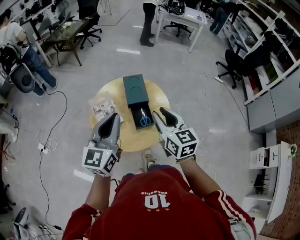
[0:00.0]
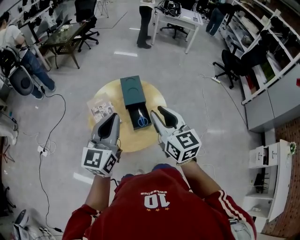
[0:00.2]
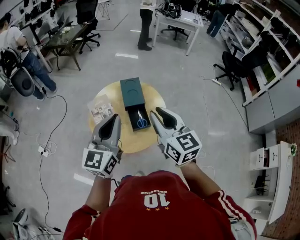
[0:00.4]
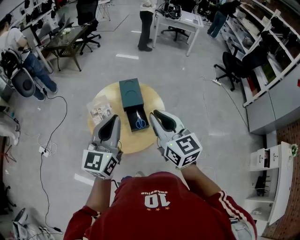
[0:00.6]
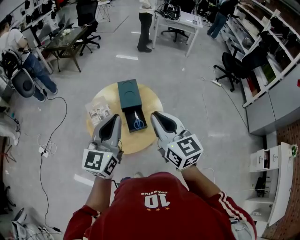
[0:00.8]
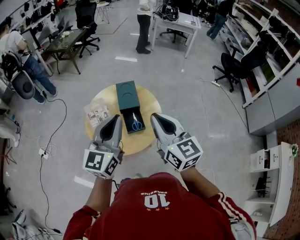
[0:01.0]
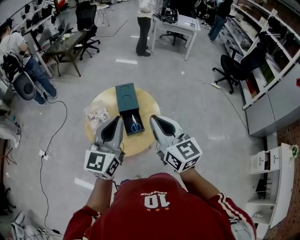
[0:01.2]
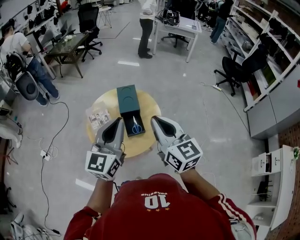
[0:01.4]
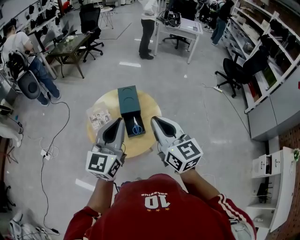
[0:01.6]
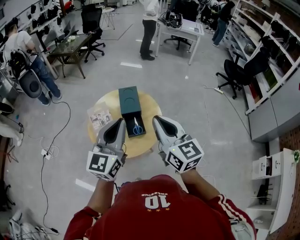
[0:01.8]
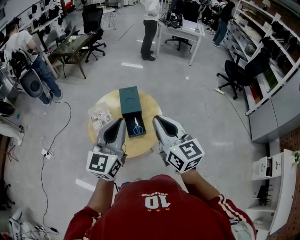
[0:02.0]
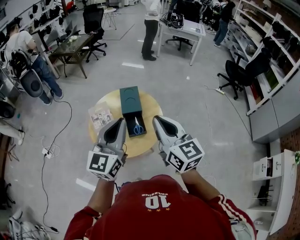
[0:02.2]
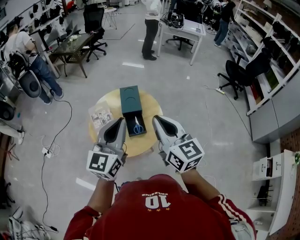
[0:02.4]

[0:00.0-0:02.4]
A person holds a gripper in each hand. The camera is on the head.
0:00.0 to 0:01.2: The right gripper shifts some 10 cm upward and backward, and closes up; the left gripper moves to the right, roughly 10 cm.
0:01.2 to 0:02.4: The grippers stay close to where they were, moving slightly.

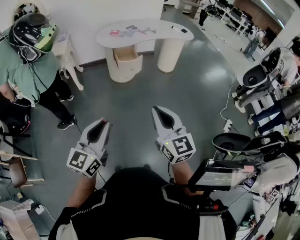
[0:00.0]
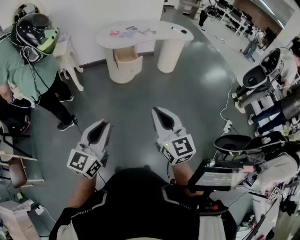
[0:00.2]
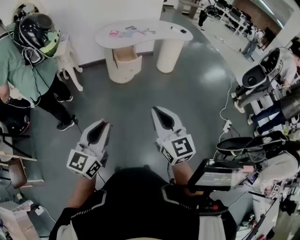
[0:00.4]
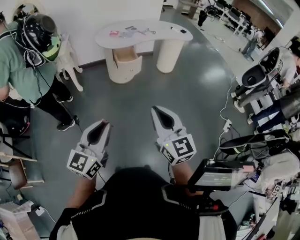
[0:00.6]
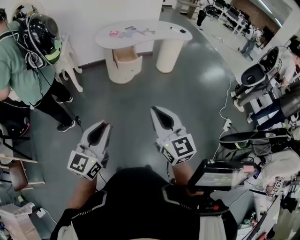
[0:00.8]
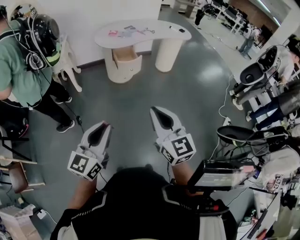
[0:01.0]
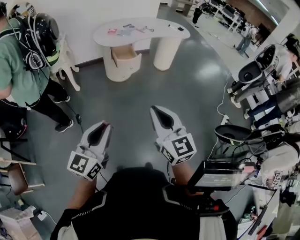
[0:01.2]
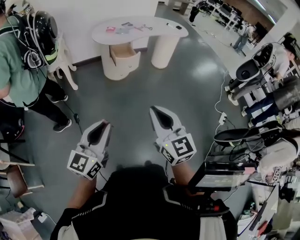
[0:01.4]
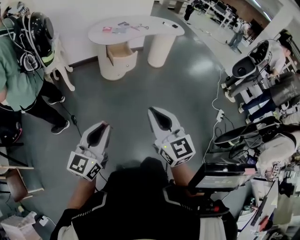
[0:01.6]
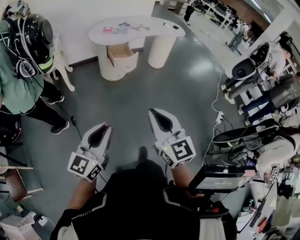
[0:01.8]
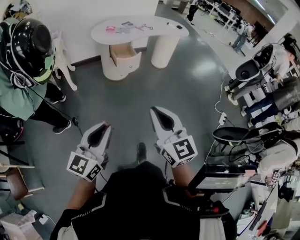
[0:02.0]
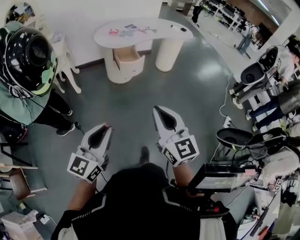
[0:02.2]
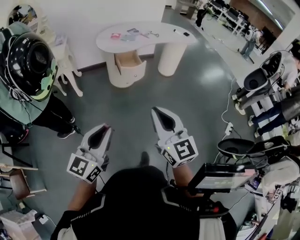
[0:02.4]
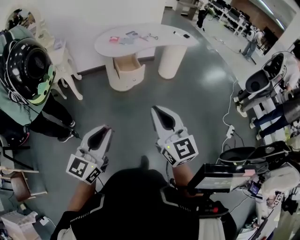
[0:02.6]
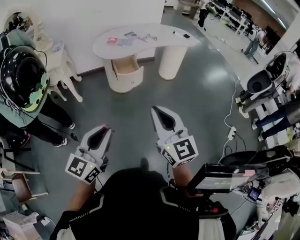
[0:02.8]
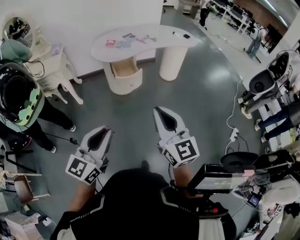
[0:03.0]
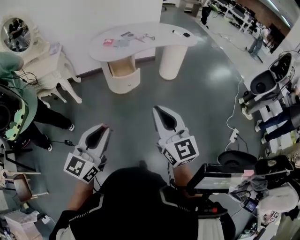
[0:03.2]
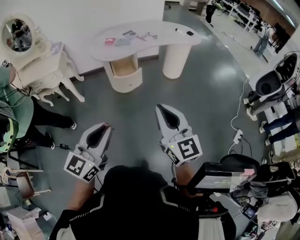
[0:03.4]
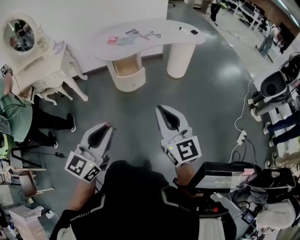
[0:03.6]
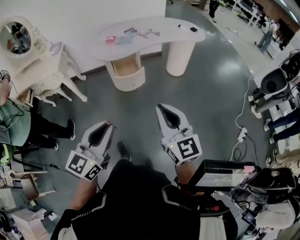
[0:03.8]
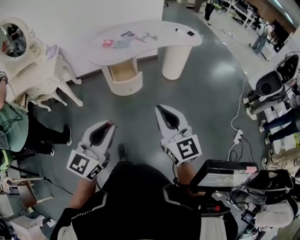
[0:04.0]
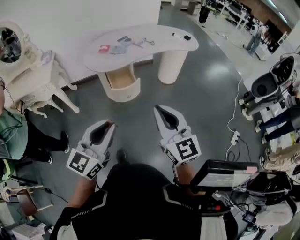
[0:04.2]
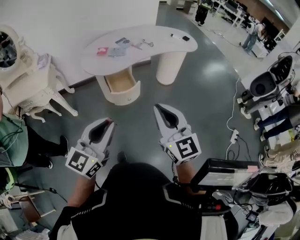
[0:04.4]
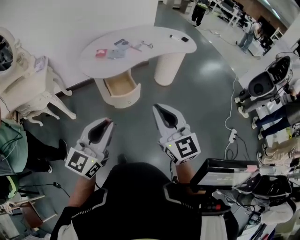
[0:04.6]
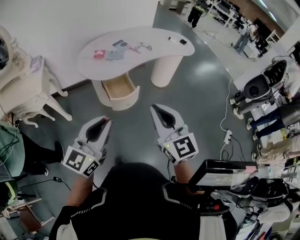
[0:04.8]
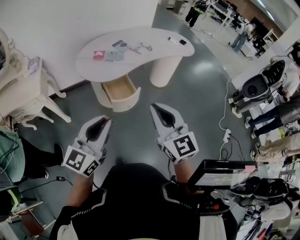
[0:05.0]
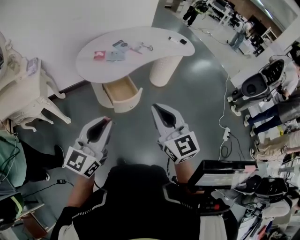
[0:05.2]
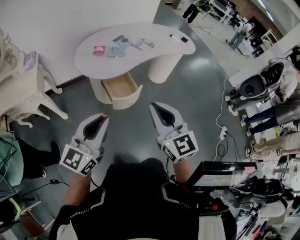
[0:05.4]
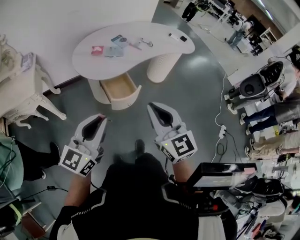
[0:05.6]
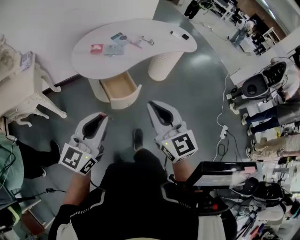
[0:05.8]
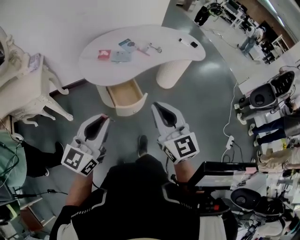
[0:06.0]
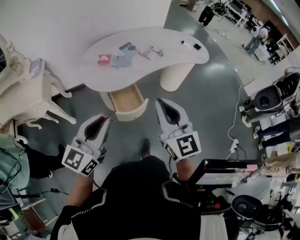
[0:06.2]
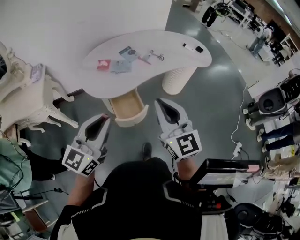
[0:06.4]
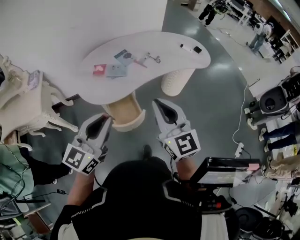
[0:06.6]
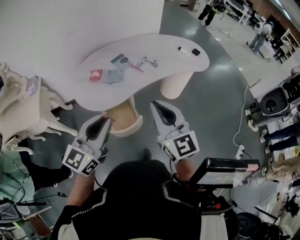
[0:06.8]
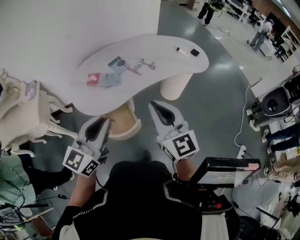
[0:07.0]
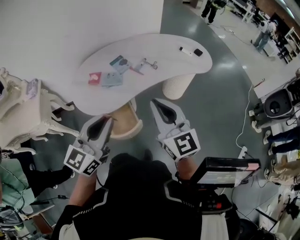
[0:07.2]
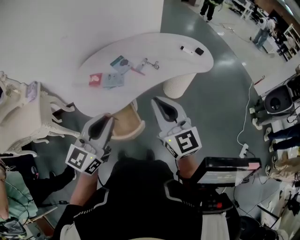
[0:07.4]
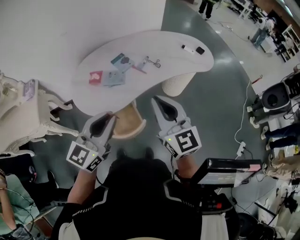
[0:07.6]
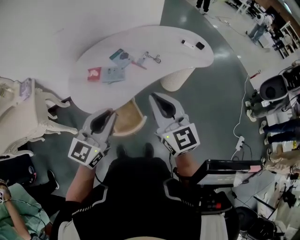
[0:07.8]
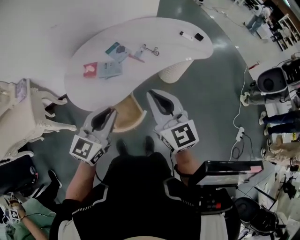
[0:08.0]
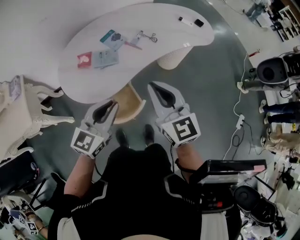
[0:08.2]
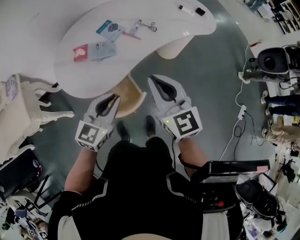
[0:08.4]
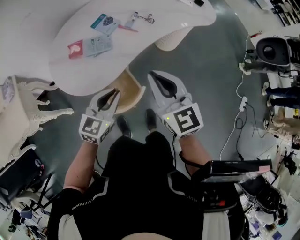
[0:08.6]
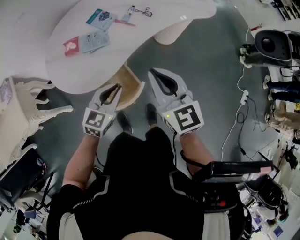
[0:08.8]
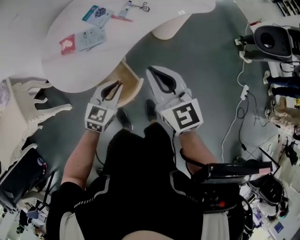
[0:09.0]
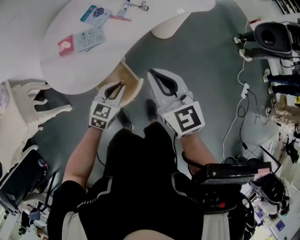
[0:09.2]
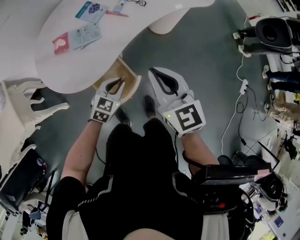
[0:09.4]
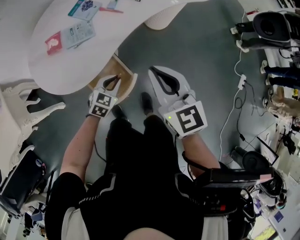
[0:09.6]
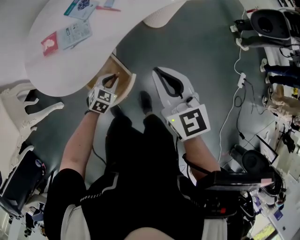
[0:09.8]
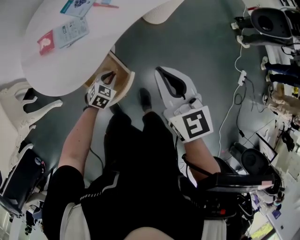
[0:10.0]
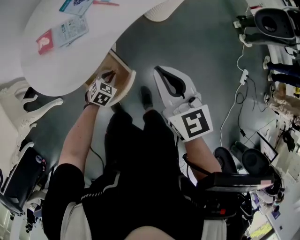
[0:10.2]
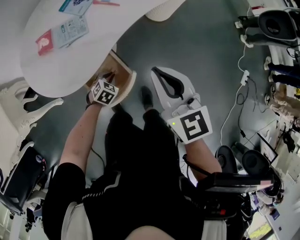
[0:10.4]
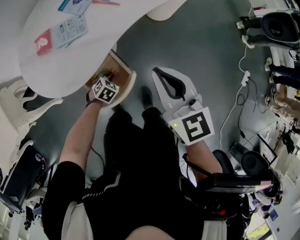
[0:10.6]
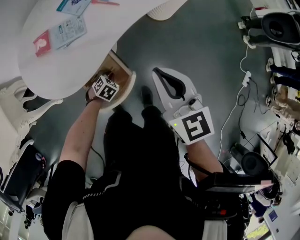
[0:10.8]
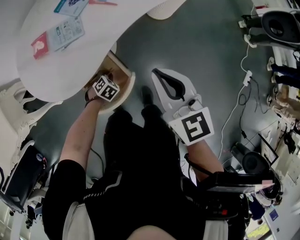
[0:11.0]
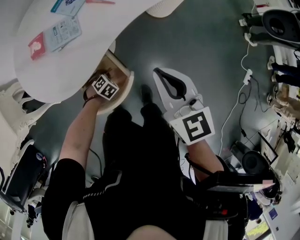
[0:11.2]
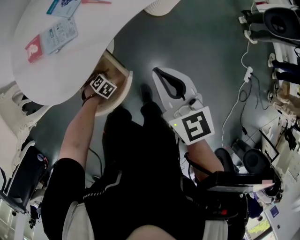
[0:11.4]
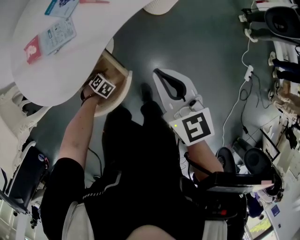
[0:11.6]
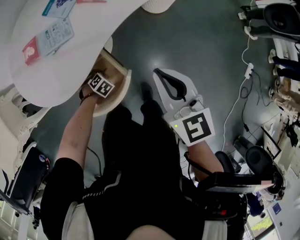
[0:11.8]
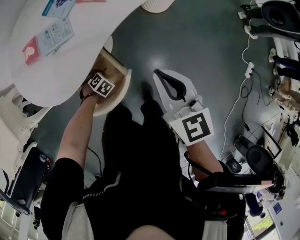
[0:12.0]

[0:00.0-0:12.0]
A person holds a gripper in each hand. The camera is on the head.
0:00.0 to 0:01.6: The grippers both shift to the left by some 10 cm.
0:01.6 to 0:03.0: Both grippers move forward and to the right, approximately 20 cm.
0:03.0 to 0:04.4: The grippers both shift forward by roughly 20 cm.
0:04.4 to 0:06.0: The two grippers go roughly 20 cm forward and to the left.
0:06.0 to 0:07.6: Both grippers travel together forward, some 25 cm.
0:07.6 to 0:09.0: The right gripper heads downward, covering about 15 cm. Meanwhile the left gripper is displaced downward by some 25 cm, and swivels roughly 30 degrees.
0:09.0 to 0:10.4: The right gripper goes some 5 cm downward. The left gripper goes some 25 cm downward, and points its fingers roughly 40 degrees further downward.
0:10.4 to 0:12.0: The right gripper goes roughly 5 cm downward, while the left gripper is displaced downward by roughly 10 cm, and swivels some 20 degrees.

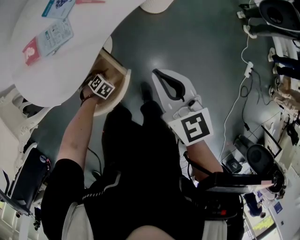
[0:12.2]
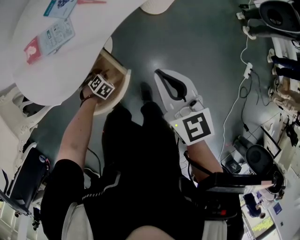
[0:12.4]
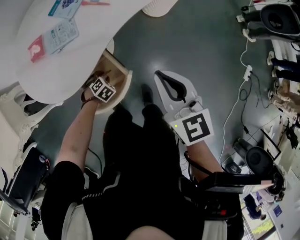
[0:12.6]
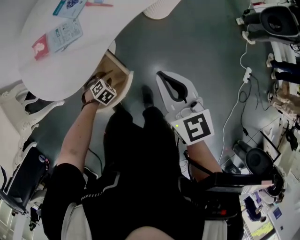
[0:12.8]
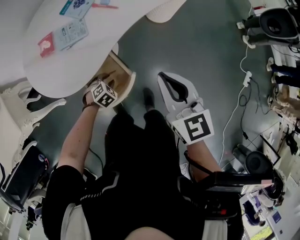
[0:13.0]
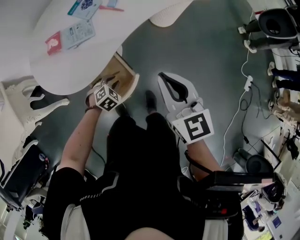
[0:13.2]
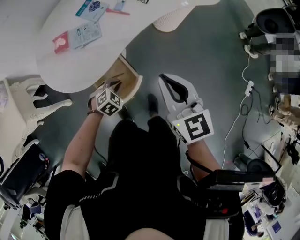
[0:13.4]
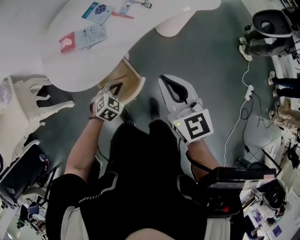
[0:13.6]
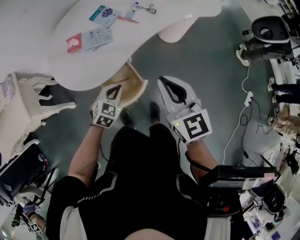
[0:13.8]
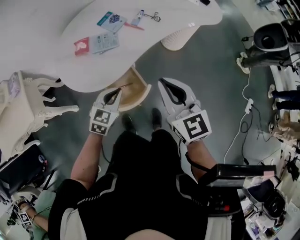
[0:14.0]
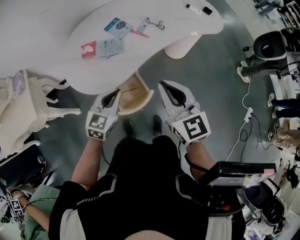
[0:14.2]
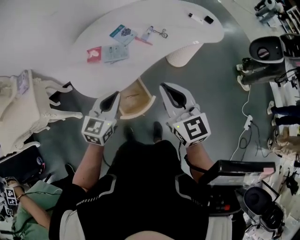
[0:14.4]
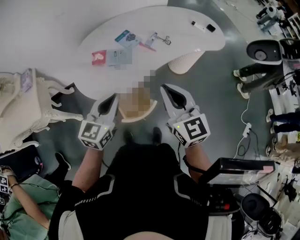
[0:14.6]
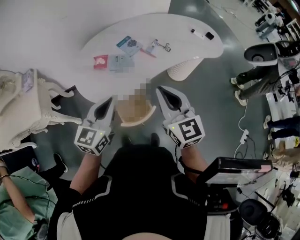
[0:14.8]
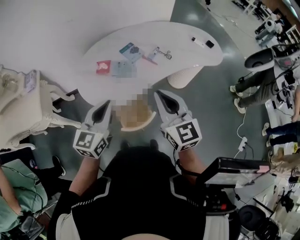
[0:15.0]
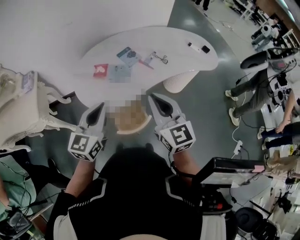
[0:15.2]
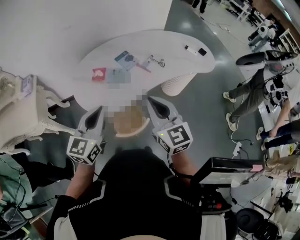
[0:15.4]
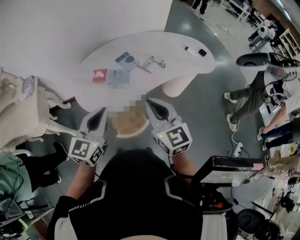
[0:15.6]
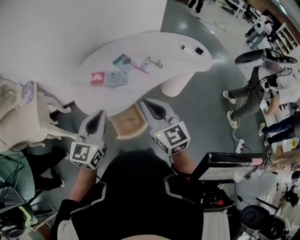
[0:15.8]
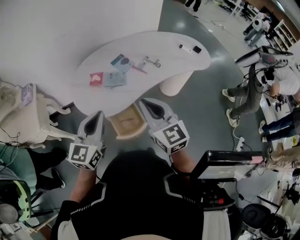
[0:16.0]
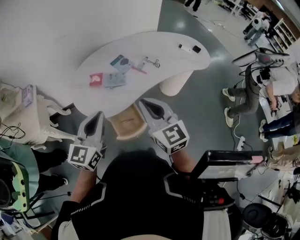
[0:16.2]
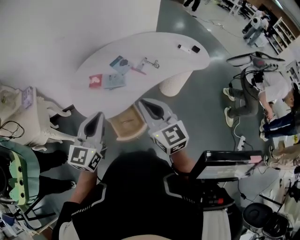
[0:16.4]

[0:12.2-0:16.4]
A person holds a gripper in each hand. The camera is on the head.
0:12.2 to 0:13.6: The left gripper is displaced upward by about 25 cm, and rotates some 30 degrees, while the right gripper is displaced upward by some 10 cm.
0:13.6 to 0:15.0: The right gripper travels upward and to the left by approximately 15 cm, while the left gripper moves upward, about 30 cm, and tilts its fingers some 40 degrees upward.
0:15.0 to 0:16.4: The grippers make only small movements.

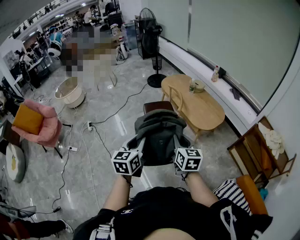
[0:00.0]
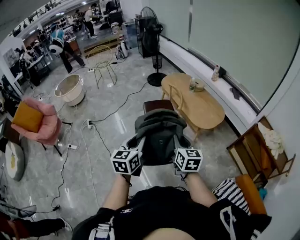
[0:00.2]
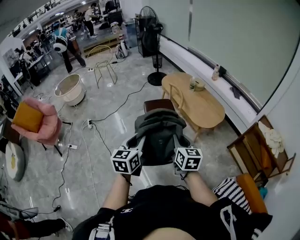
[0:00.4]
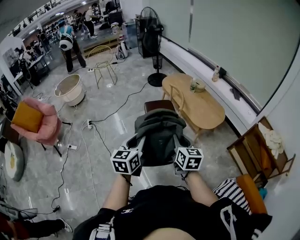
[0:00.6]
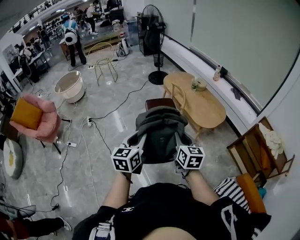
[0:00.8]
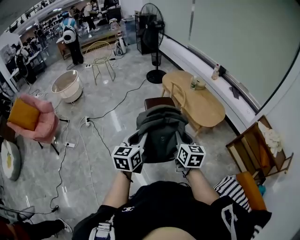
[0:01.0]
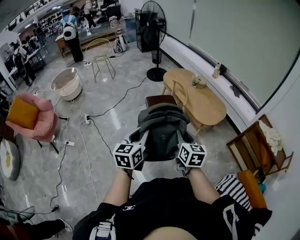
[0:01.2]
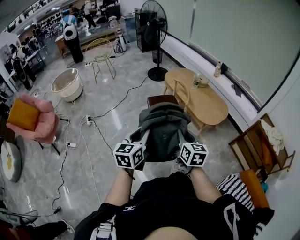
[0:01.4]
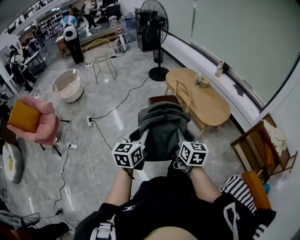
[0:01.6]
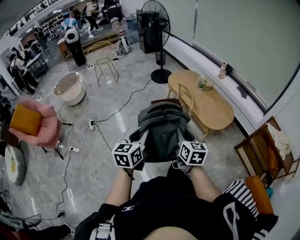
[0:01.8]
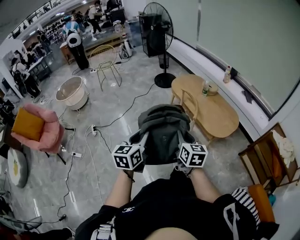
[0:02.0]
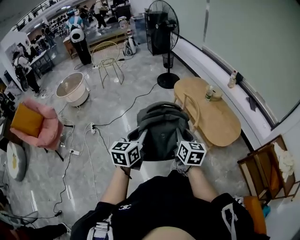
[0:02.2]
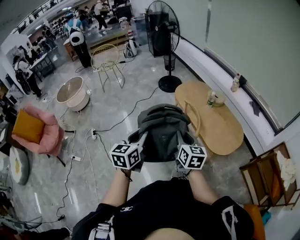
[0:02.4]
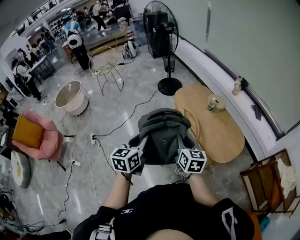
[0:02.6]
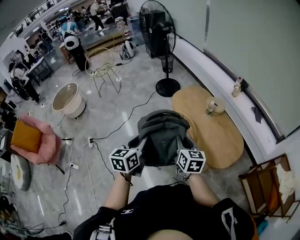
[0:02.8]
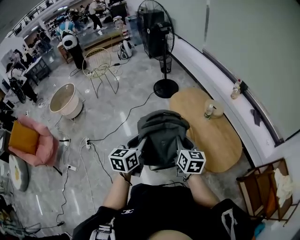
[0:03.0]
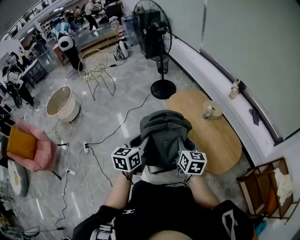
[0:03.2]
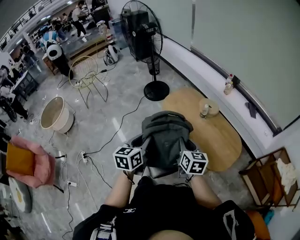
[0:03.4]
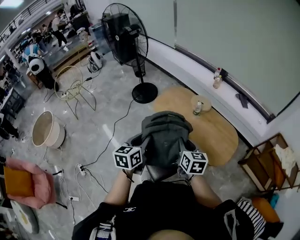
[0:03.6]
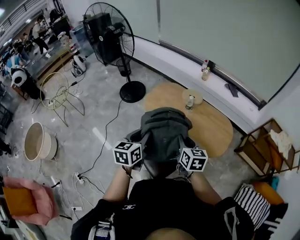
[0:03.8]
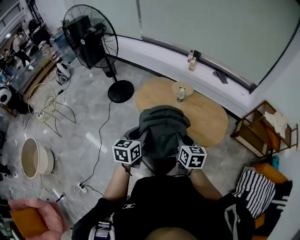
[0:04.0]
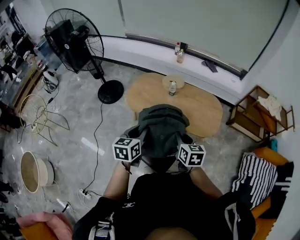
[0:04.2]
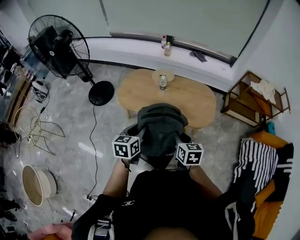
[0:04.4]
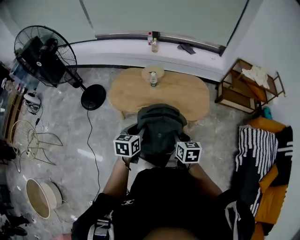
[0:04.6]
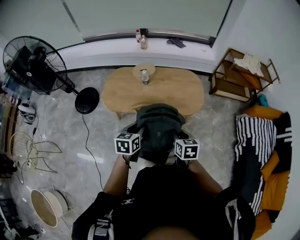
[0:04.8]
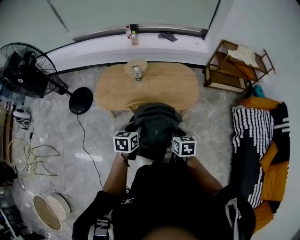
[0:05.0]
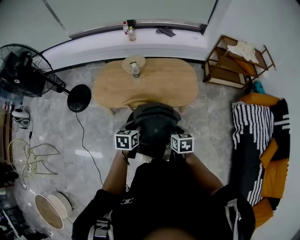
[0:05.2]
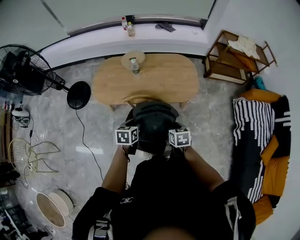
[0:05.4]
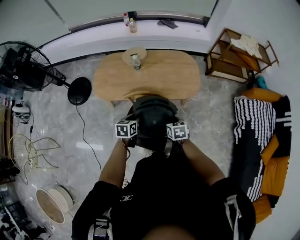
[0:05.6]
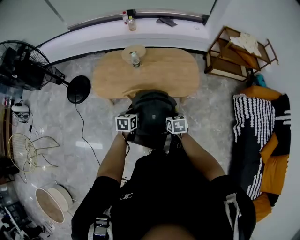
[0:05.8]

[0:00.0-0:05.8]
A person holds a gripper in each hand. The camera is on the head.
0:00.0 to 0:01.4: The grippers both shift to the left by approximately 10 cm.
0:01.4 to 0:02.8: The pair of grippers is taken forward, roughly 60 cm.
0:02.8 to 0:04.4: The left gripper ends up some 30 cm from where it was, and turns by approximately 50 degrees. Meanwhile the right gripper travels downward by approximately 10 cm, and swivels about 50 degrees.
0:04.4 to 0:05.8: The right gripper is displaced downward by about 20 cm. Meanwhile the left gripper is displaced downward and forward by about 20 cm, and swivels roughly 20 degrees.
